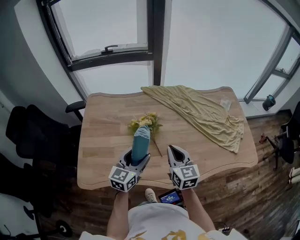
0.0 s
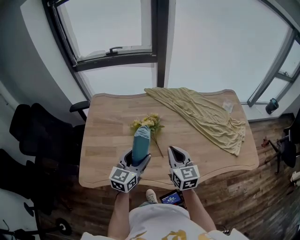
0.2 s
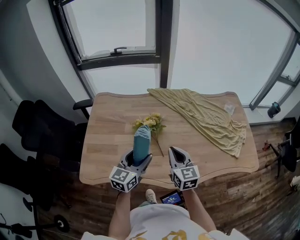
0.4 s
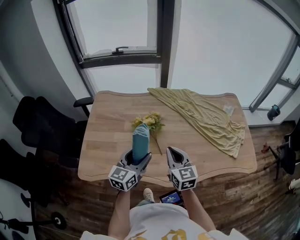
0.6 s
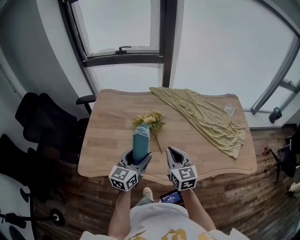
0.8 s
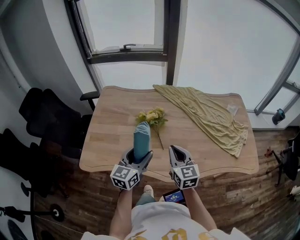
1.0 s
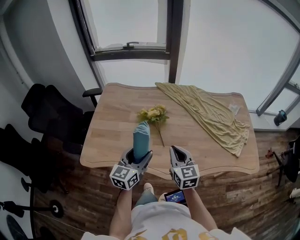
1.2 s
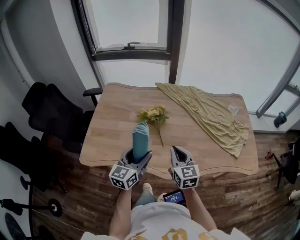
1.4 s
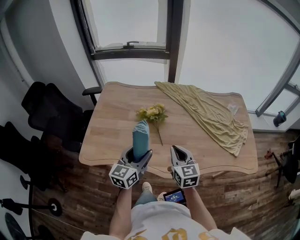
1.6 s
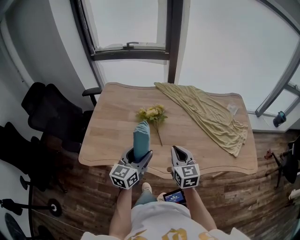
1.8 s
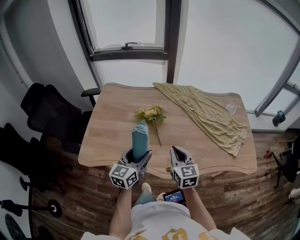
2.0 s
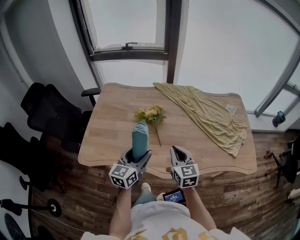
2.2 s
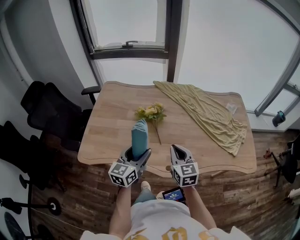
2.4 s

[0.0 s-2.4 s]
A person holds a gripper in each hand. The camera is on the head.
0.0 to 1.2 s: The grippers both shift backward by about 10 cm.
1.2 to 2.4 s: The grippers stay close to where they were, moving slightly.

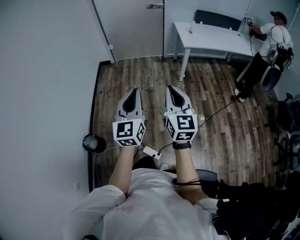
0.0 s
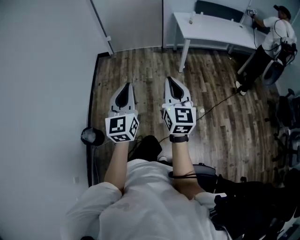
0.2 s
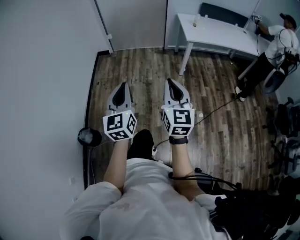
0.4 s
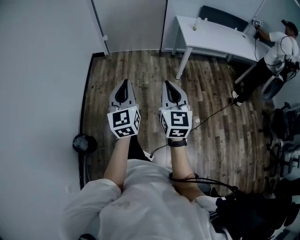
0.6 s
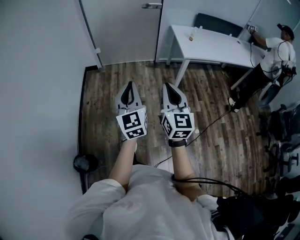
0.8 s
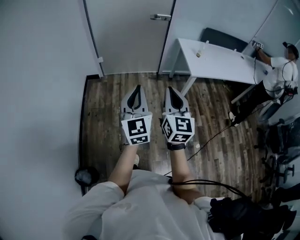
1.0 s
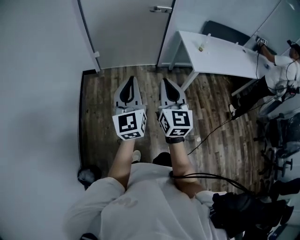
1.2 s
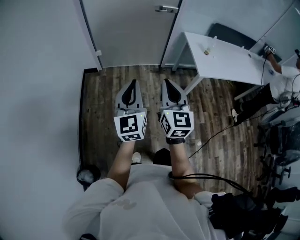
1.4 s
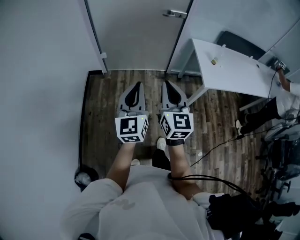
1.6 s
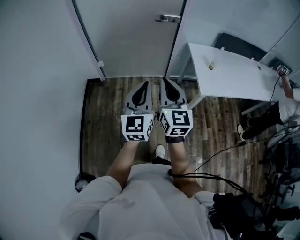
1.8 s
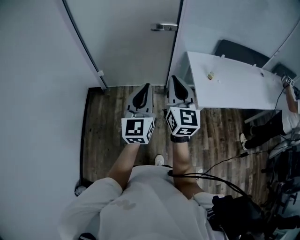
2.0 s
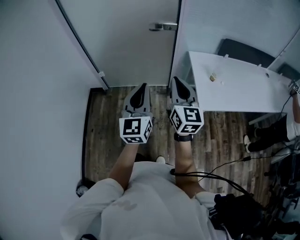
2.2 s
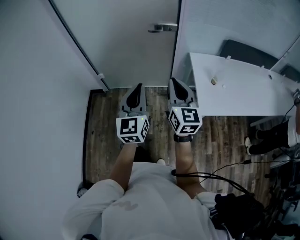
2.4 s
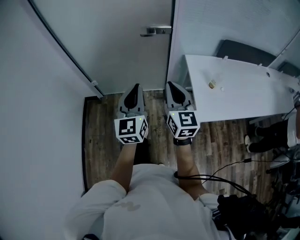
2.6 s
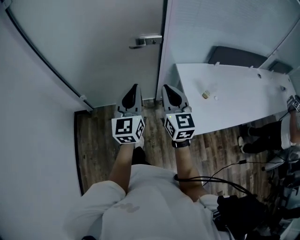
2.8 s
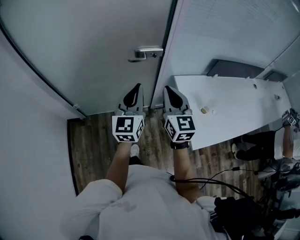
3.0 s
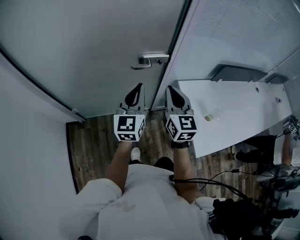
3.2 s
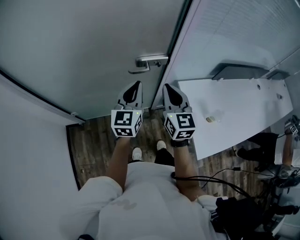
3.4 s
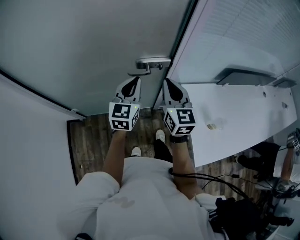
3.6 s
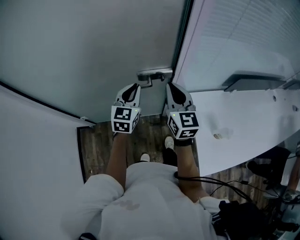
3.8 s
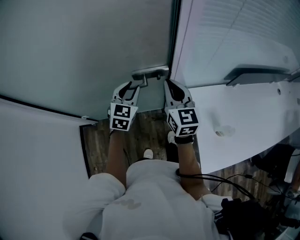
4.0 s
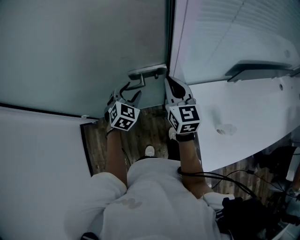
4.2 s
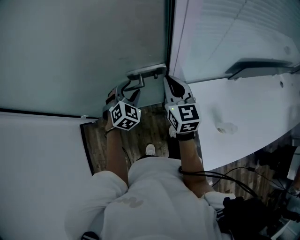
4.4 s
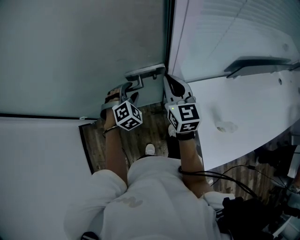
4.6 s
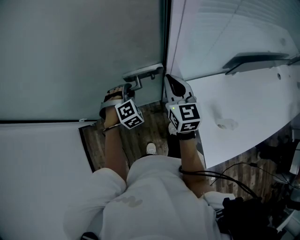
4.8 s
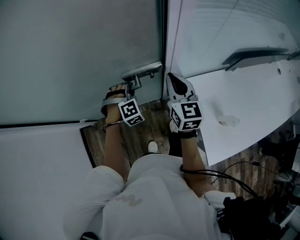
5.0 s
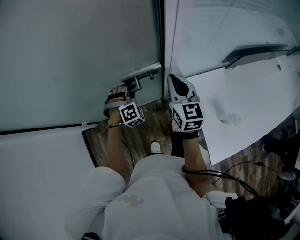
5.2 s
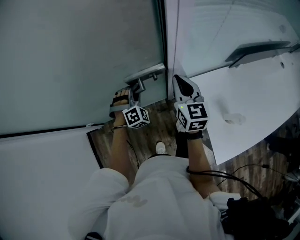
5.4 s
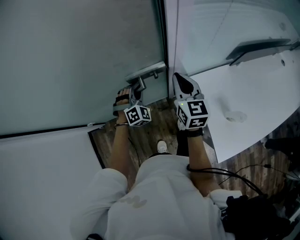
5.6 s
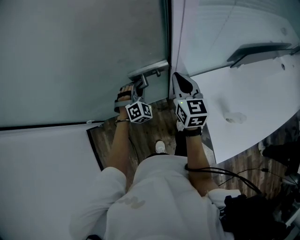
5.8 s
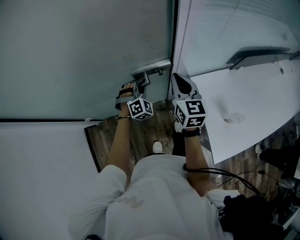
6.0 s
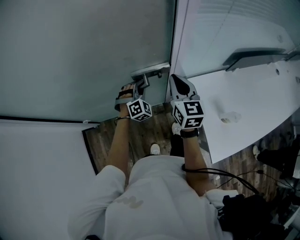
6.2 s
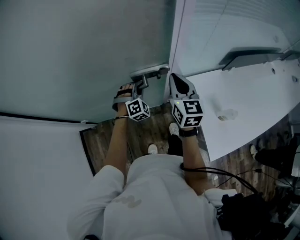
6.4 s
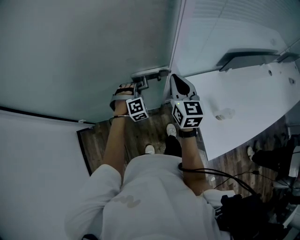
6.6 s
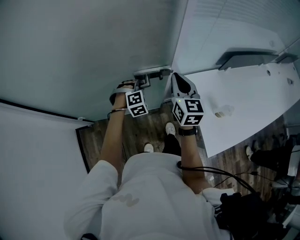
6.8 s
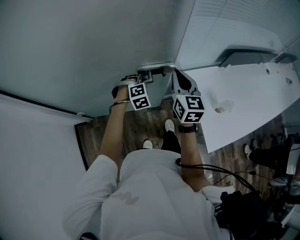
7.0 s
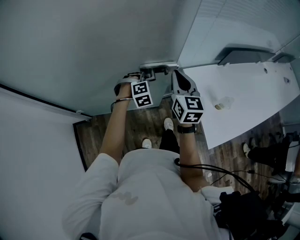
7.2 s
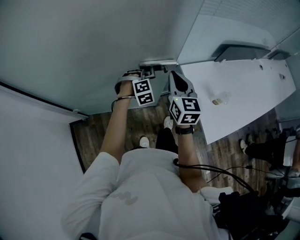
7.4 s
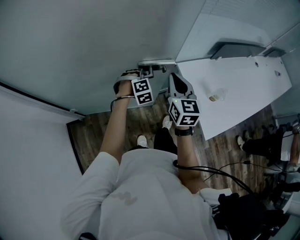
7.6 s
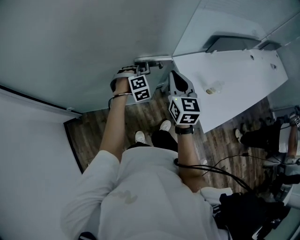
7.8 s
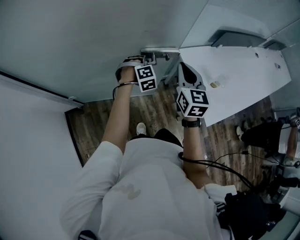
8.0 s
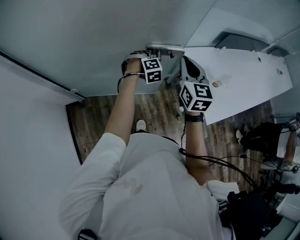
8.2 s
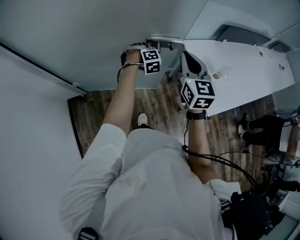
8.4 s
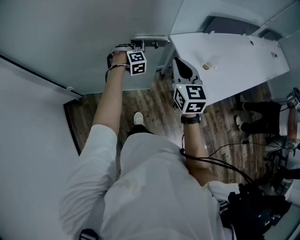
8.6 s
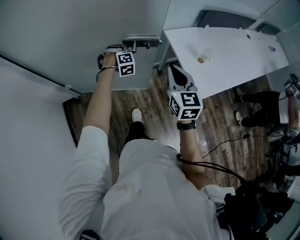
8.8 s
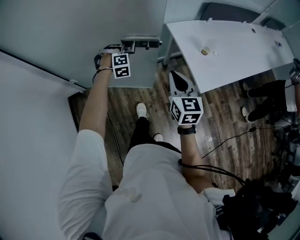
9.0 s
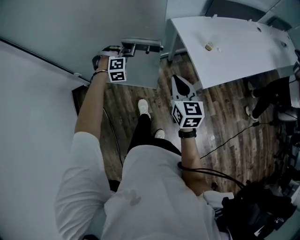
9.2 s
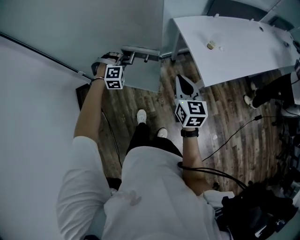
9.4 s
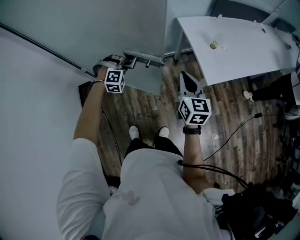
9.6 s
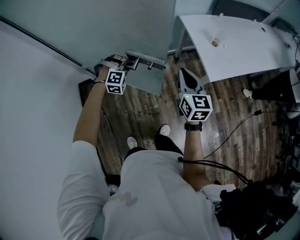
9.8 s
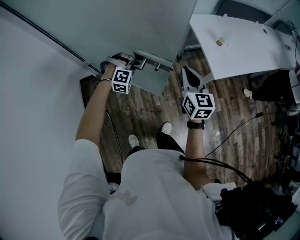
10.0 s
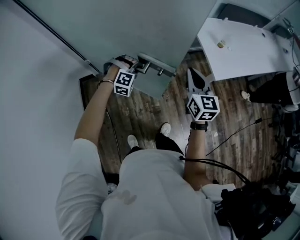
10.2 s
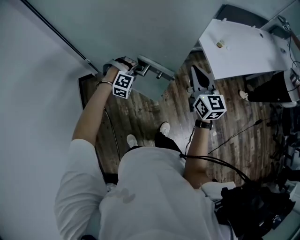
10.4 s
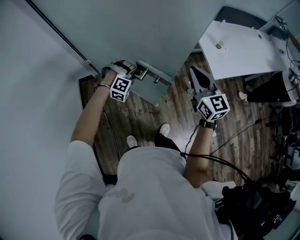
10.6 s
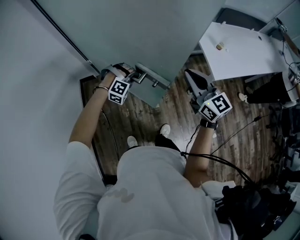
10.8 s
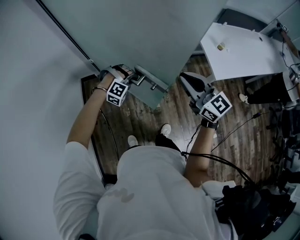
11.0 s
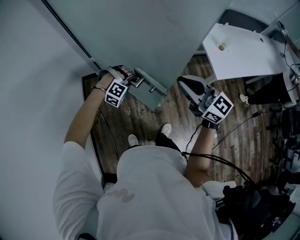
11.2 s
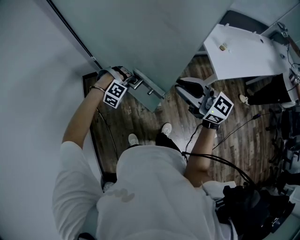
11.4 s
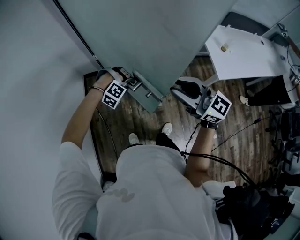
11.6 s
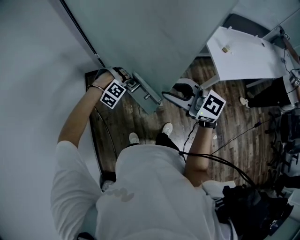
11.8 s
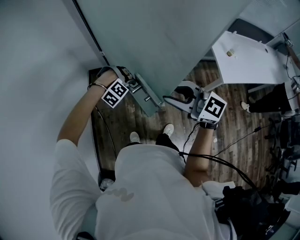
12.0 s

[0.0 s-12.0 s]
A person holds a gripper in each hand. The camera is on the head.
0.0 to 1.6 s: The two grippers travel together, forward, some 60 cm.
1.6 to 3.0 s: The two grippers travel together, forward, approximately 60 cm.
3.0 to 4.4 s: The left gripper travels forward and downward by some 35 cm, tilts its fingers about 40 degrees downward, and opens. Meanwhile the right gripper travels forward by approximately 30 cm.
4.4 to 6.0 s: The left gripper moves downward, approximately 5 cm, changes its angle by some 20 degrees, and closes.
6.0 to 7.6 s: The grippers both shift backward by roughly 20 cm.
7.6 to 9.0 s: The left gripper shifts approximately 15 cm backward. The right gripper moves backward, some 30 cm.
9.0 to 10.4 s: The right gripper moves backward and to the left, approximately 15 cm. The left gripper shifts roughly 25 cm backward, and changes its angle by roughly 20 degrees.
10.4 to 12.0 s: The left gripper changes place by some 25 cm, rotates roughly 30 degrees, and opens its fingers. Meanwhile the right gripper changes place by about 30 cm, turns by approximately 60 degrees, and opens its fingers.

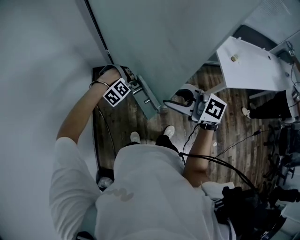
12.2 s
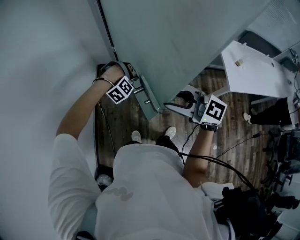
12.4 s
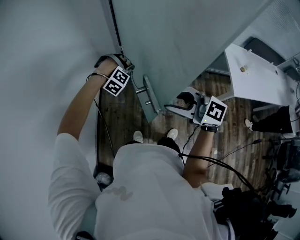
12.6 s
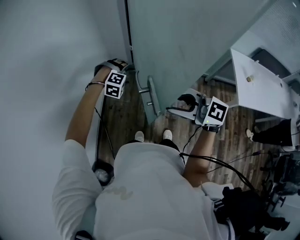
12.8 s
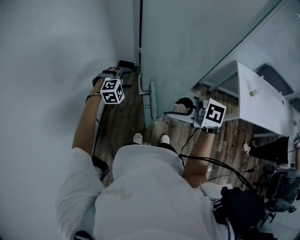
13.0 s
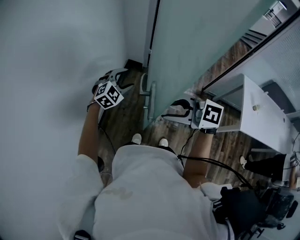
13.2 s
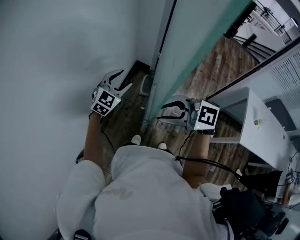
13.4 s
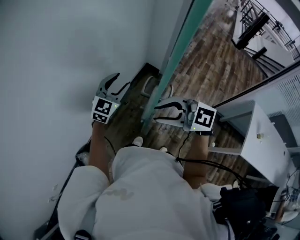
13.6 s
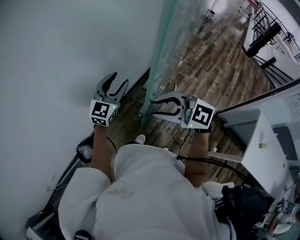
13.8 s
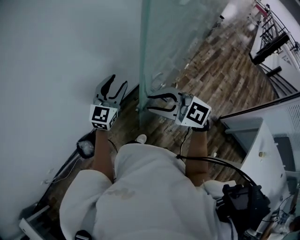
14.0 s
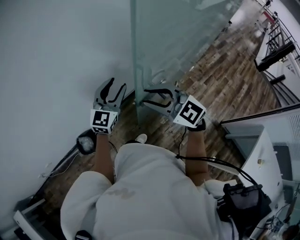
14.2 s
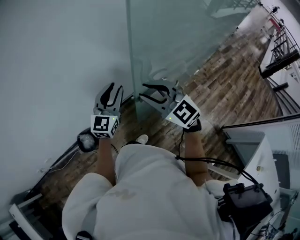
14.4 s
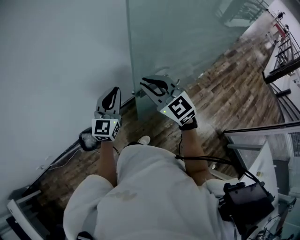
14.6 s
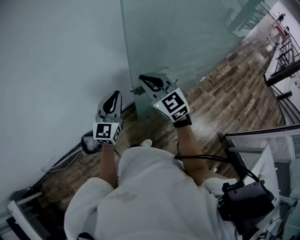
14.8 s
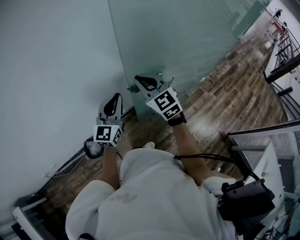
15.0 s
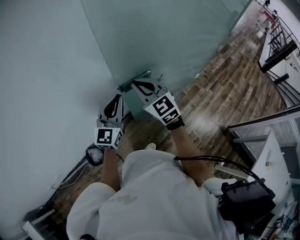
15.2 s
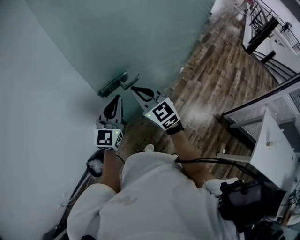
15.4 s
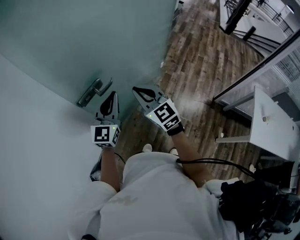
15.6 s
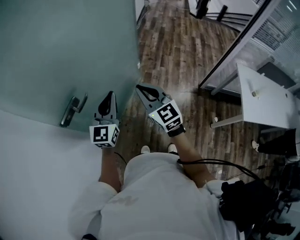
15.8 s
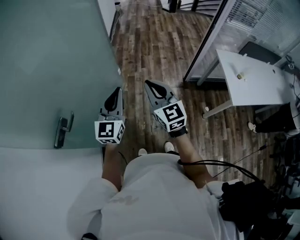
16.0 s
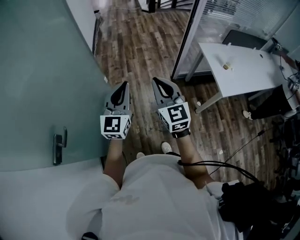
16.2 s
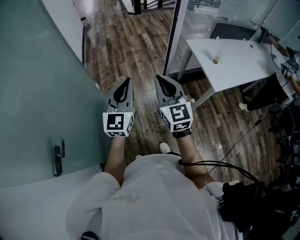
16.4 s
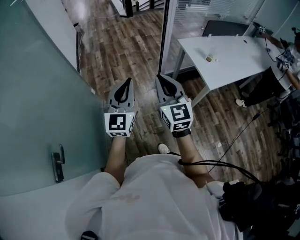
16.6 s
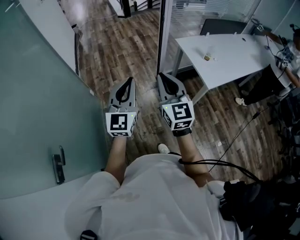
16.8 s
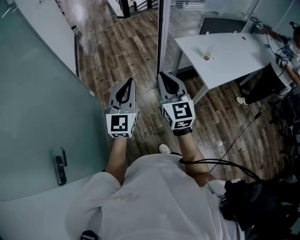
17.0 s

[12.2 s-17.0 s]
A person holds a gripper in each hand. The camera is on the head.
12.2 to 13.8 s: The left gripper ends up about 40 cm from where it was, and angles its fingers upward, by roughly 70 degrees. Meanwhile the right gripper moves some 25 cm, and swivels roughly 50 degrees.
13.8 to 15.4 s: The left gripper travels to the left and upward by about 10 cm, and closes. The right gripper heads forward, covering about 20 cm, swivels some 40 degrees, and closes its fingers.
15.4 to 17.0 s: Both grippers are carried some 60 cm. The left gripper swivels about 60 degrees. The right gripper rotates some 90 degrees.

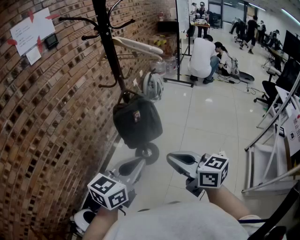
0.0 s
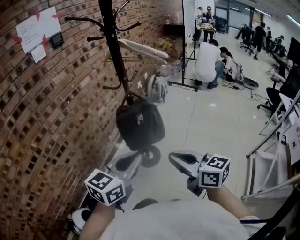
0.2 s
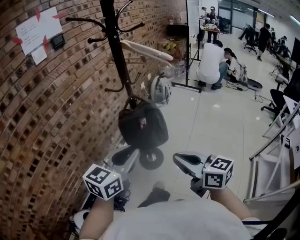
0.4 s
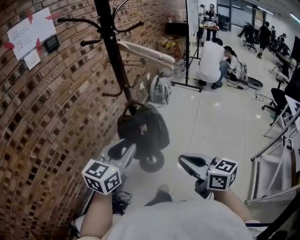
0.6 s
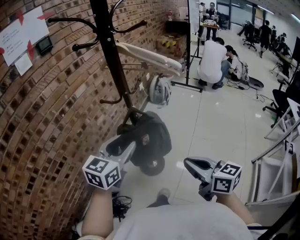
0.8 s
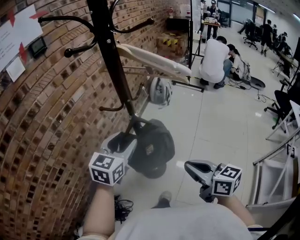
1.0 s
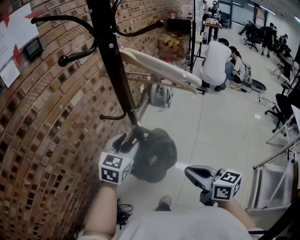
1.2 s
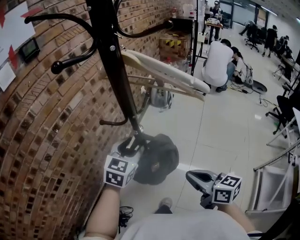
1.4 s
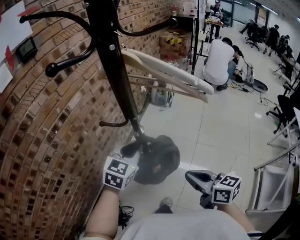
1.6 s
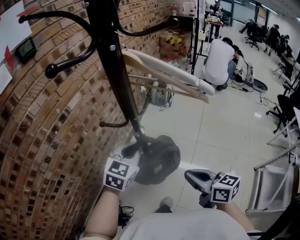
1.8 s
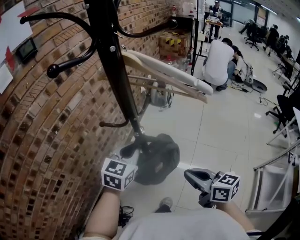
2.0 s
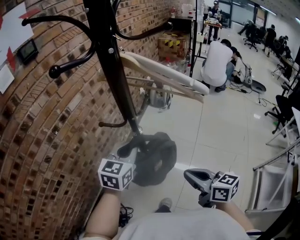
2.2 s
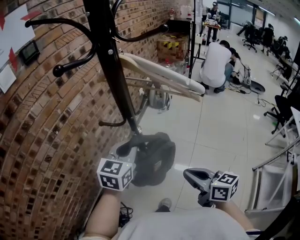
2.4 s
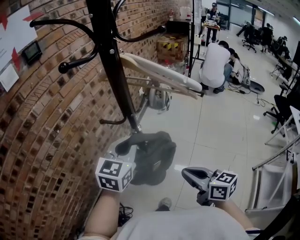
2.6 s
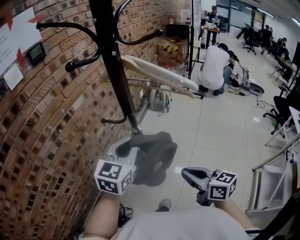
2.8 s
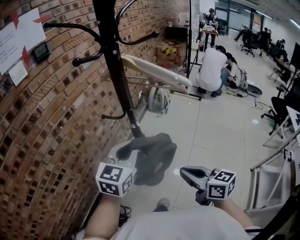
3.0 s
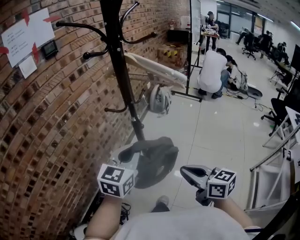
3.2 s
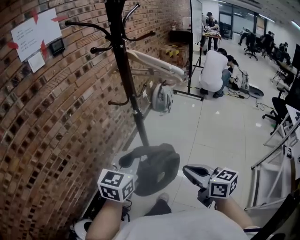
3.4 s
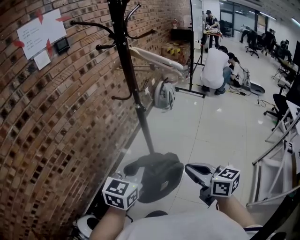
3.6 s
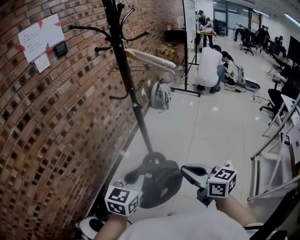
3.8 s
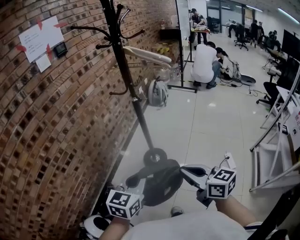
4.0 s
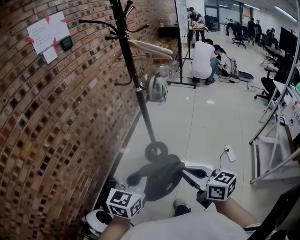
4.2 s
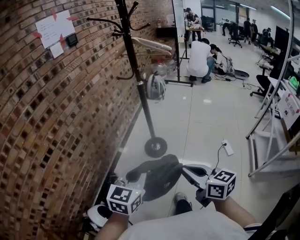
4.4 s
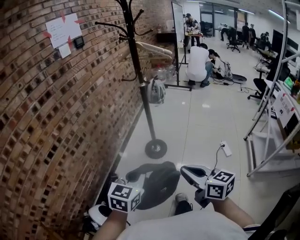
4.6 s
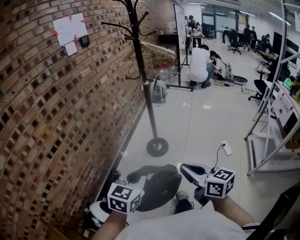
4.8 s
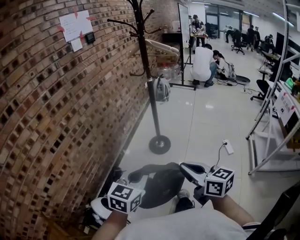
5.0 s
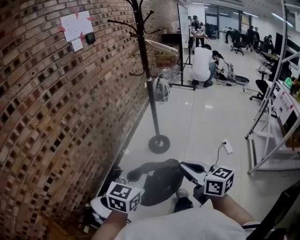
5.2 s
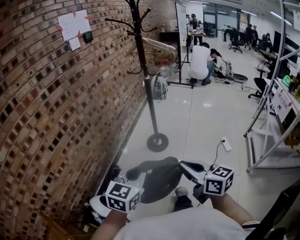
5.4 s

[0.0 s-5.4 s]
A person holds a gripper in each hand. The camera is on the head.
0.0 to 1.4 s: The right gripper is displaced forward by roughly 25 cm. Meanwhile the left gripper is displaced forward by roughly 40 cm, turns by about 30 degrees, and opens.
1.4 to 2.8 s: The left gripper shifts about 10 cm upward and backward, and closes its fingers.
2.8 to 4.0 s: The two grippers go some 30 cm backward.
4.0 to 5.4 s: The grippers both shift backward and to the left by roughly 25 cm.
